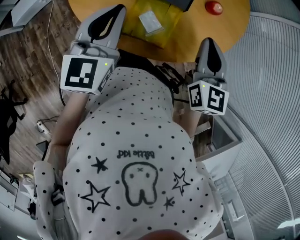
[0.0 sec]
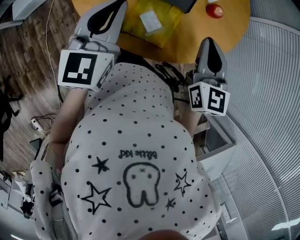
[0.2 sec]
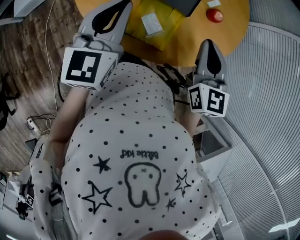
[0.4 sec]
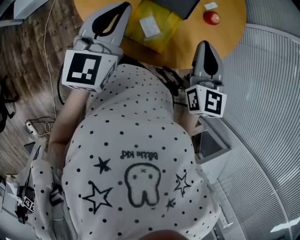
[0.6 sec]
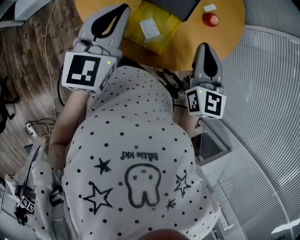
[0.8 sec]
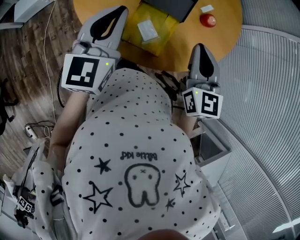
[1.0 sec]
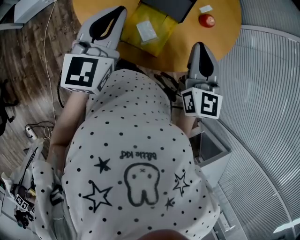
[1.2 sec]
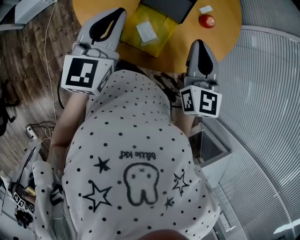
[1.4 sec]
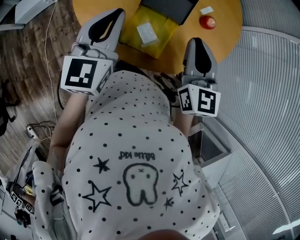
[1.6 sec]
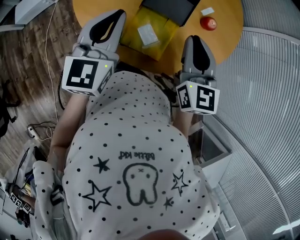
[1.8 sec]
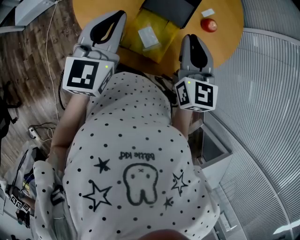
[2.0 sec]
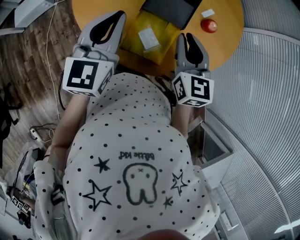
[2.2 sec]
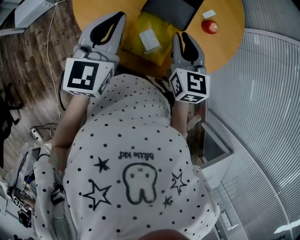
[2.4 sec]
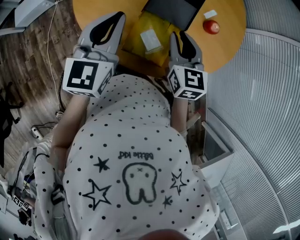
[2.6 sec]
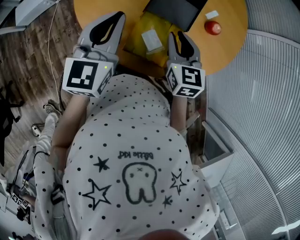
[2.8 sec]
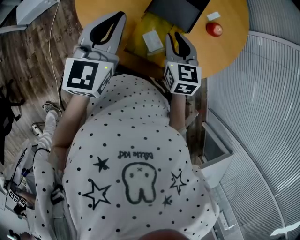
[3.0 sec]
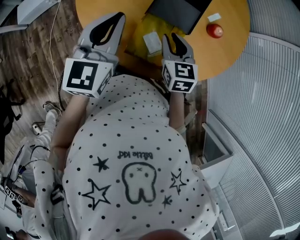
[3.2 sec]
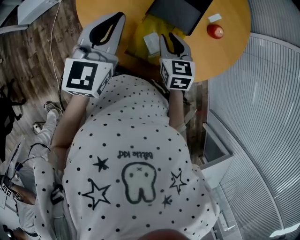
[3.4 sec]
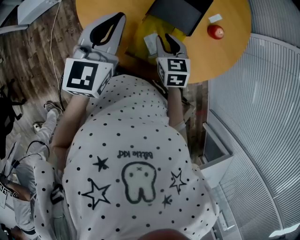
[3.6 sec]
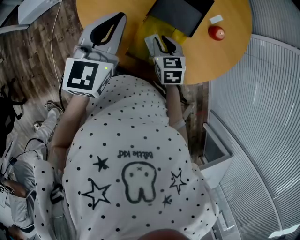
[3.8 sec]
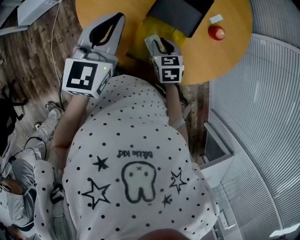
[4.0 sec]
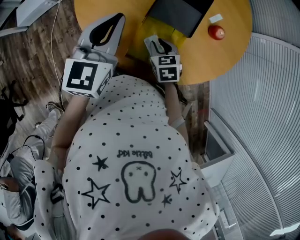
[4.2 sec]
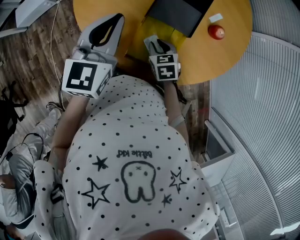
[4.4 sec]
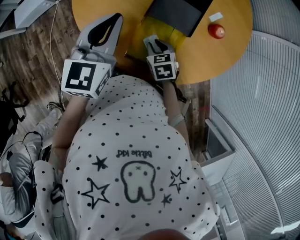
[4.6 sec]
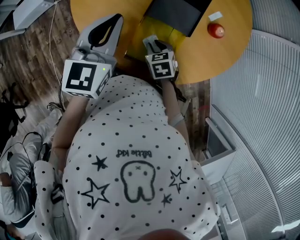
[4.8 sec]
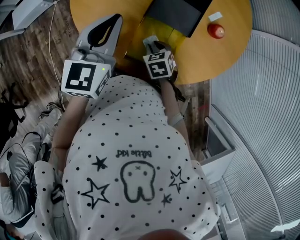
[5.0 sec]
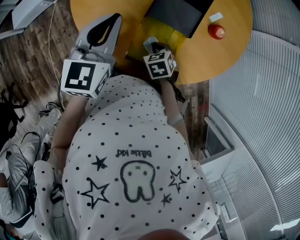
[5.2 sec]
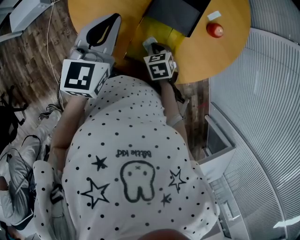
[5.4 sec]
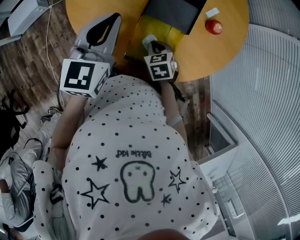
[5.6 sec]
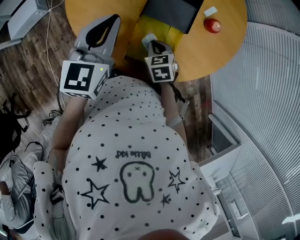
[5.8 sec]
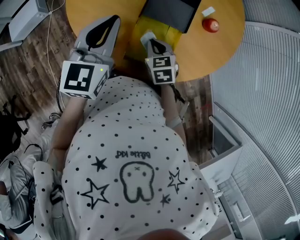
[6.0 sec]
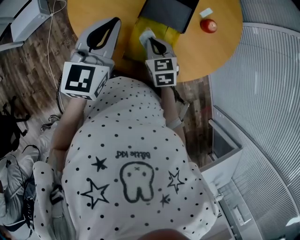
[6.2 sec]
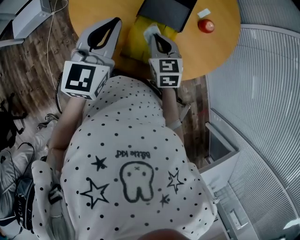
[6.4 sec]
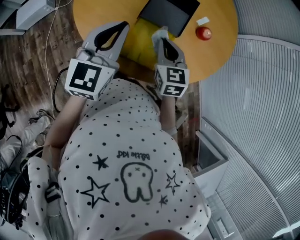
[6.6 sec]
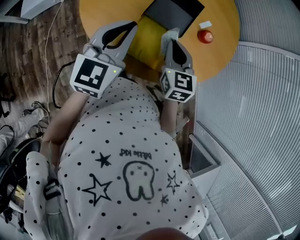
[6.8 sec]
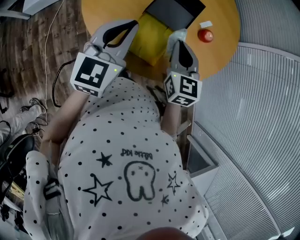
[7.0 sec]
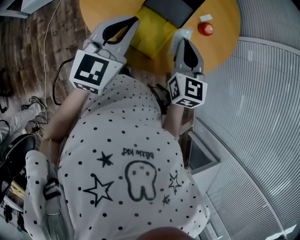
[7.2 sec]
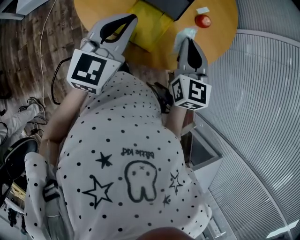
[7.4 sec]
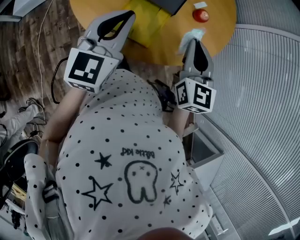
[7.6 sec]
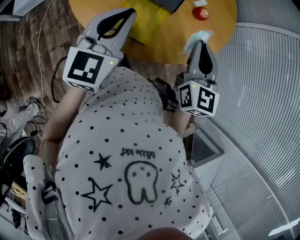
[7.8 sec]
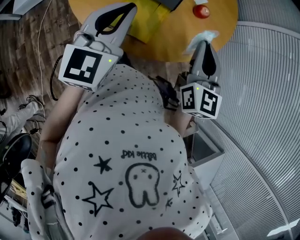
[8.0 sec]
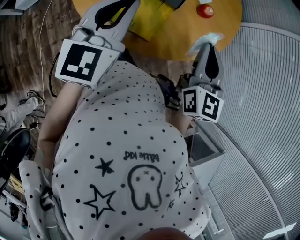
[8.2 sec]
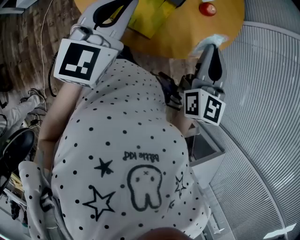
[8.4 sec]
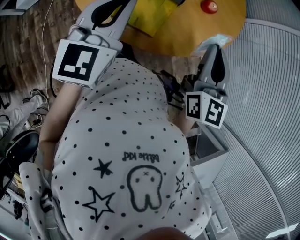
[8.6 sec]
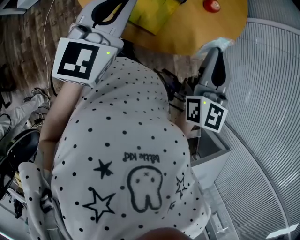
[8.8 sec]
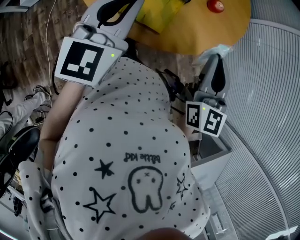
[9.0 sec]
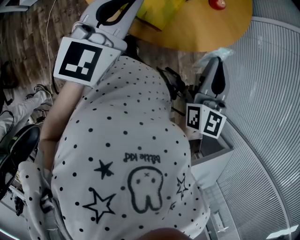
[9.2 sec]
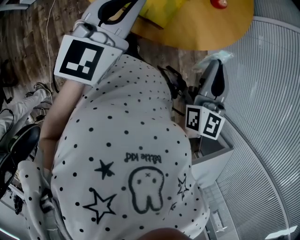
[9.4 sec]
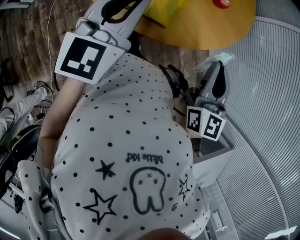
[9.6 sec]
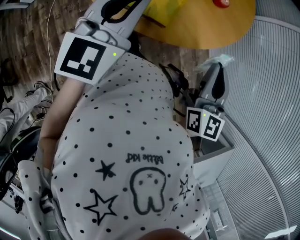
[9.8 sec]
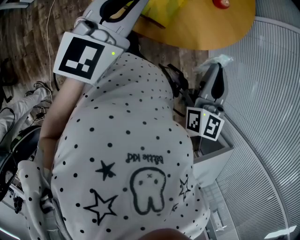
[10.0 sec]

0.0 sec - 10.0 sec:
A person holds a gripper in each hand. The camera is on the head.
0.0 sec - 1.4 sec: The right gripper shifts by about 5 cm.
1.4 sec - 2.8 sec: The right gripper heads downward, forward and to the left, covering approximately 15 cm, and opens its fingers. The left gripper moves roughly 5 cm.
2.8 sec - 4.2 sec: The right gripper is displaced downward by roughly 15 cm, and changes its angle by roughly 30 degrees.
4.2 sec - 5.8 sec: The right gripper closes.
5.8 sec - 7.2 sec: The left gripper shifts approximately 20 cm backward and to the right. The right gripper is displaced upward and to the right by roughly 25 cm, and tilts its fingers roughly 40 degrees upward.
7.2 sec - 8.6 sec: The right gripper moves to the right, upward and backward, some 10 cm.
8.6 sec - 10.0 sec: The right gripper shifts by some 5 cm.

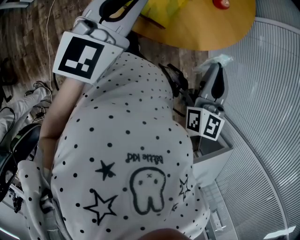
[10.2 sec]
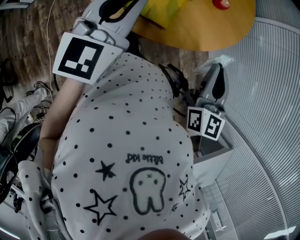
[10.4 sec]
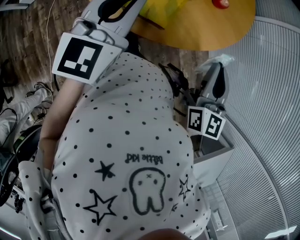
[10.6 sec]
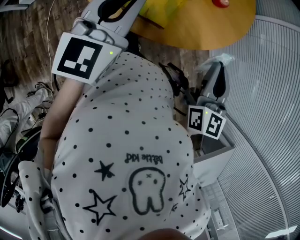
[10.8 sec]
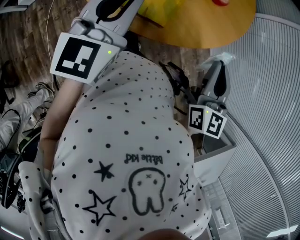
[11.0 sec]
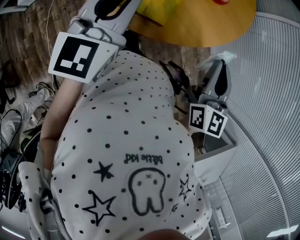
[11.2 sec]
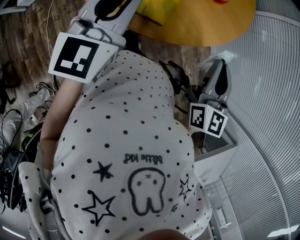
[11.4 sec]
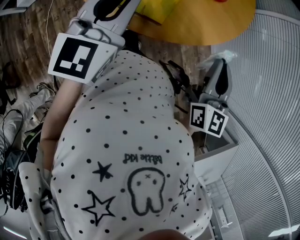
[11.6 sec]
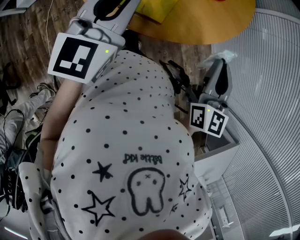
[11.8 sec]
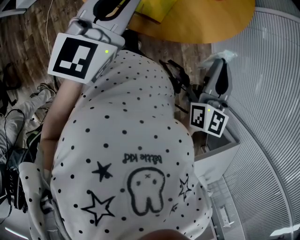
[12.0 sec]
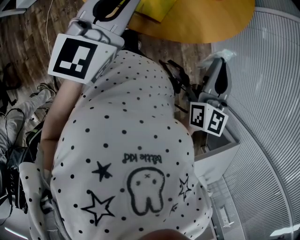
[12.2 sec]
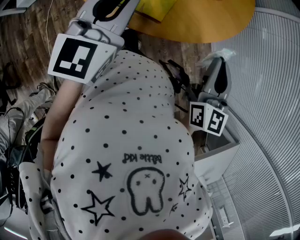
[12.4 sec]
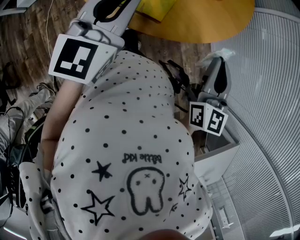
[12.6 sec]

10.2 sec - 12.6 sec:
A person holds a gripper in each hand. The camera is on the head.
10.2 sec - 11.4 sec: Both grippers stay put.
11.4 sec - 12.6 sec: The two grippers keep their place.

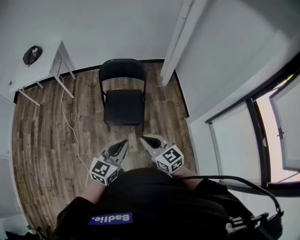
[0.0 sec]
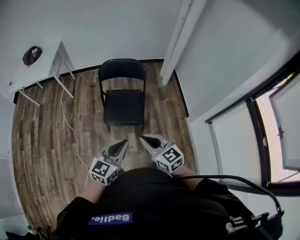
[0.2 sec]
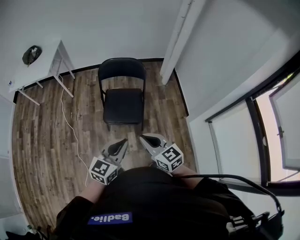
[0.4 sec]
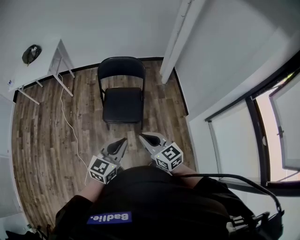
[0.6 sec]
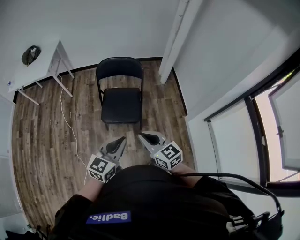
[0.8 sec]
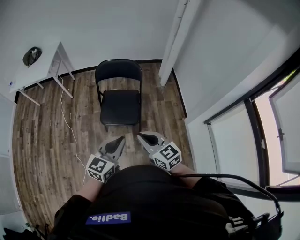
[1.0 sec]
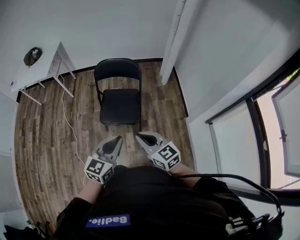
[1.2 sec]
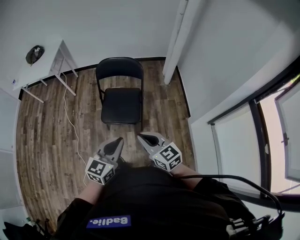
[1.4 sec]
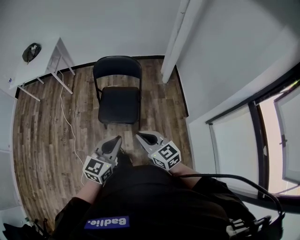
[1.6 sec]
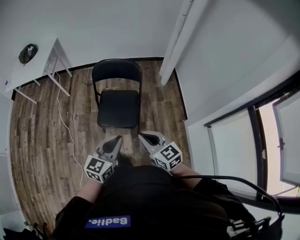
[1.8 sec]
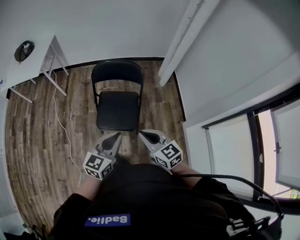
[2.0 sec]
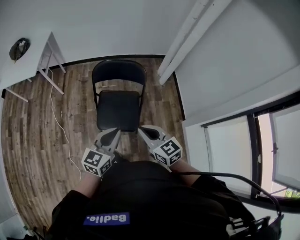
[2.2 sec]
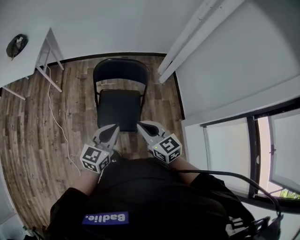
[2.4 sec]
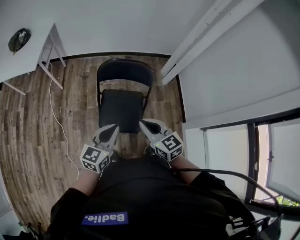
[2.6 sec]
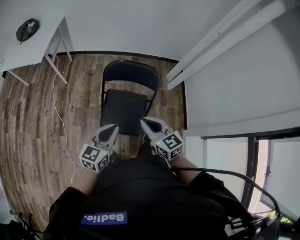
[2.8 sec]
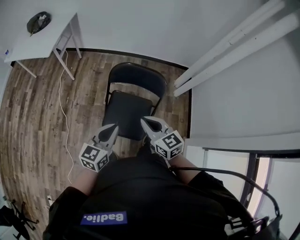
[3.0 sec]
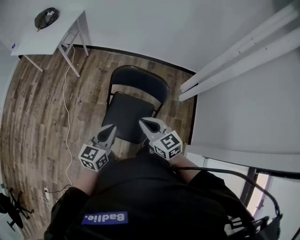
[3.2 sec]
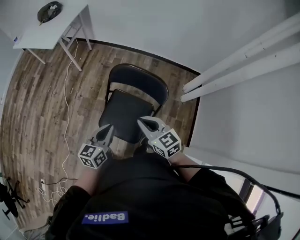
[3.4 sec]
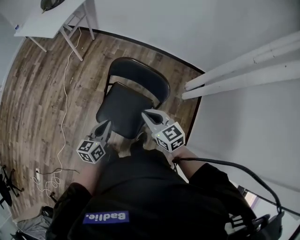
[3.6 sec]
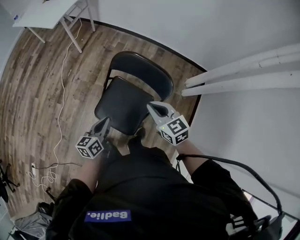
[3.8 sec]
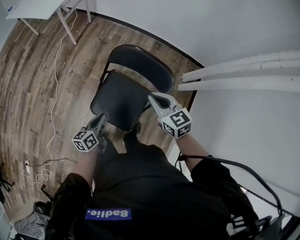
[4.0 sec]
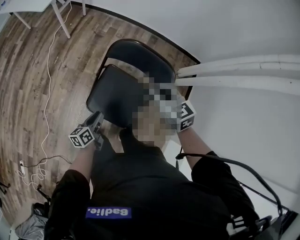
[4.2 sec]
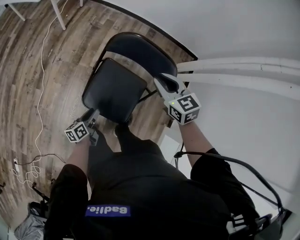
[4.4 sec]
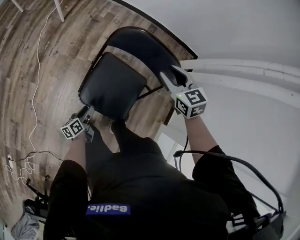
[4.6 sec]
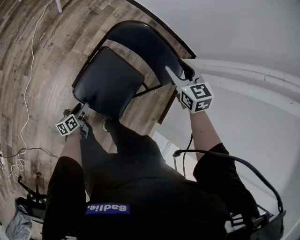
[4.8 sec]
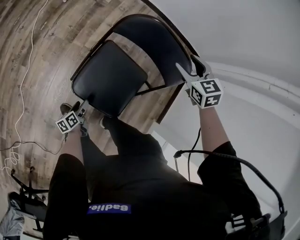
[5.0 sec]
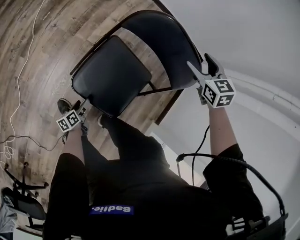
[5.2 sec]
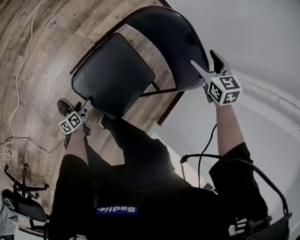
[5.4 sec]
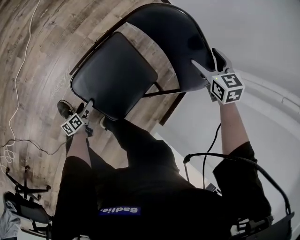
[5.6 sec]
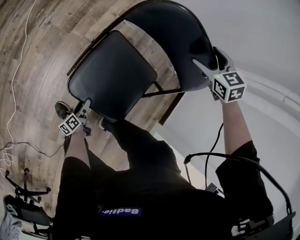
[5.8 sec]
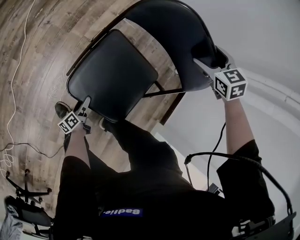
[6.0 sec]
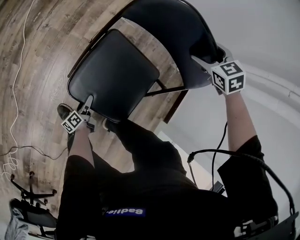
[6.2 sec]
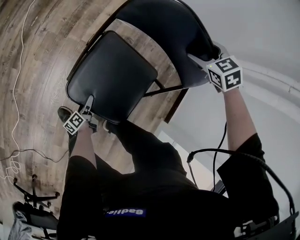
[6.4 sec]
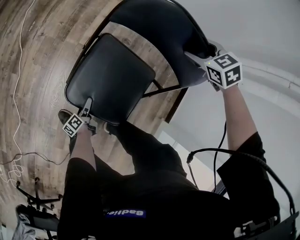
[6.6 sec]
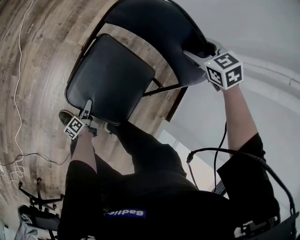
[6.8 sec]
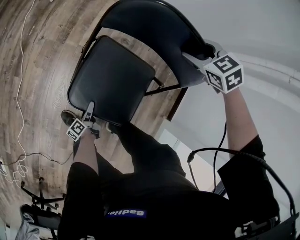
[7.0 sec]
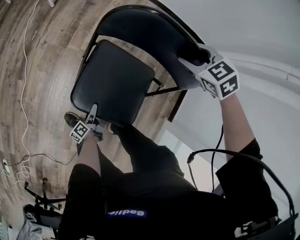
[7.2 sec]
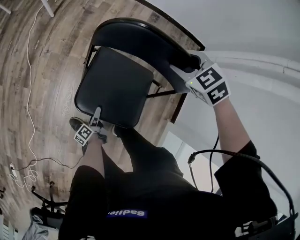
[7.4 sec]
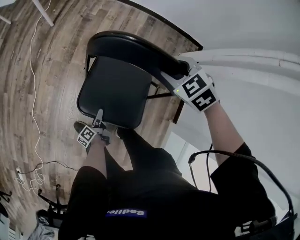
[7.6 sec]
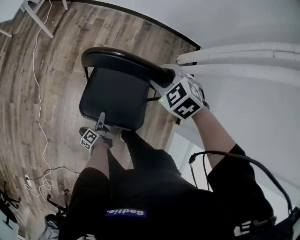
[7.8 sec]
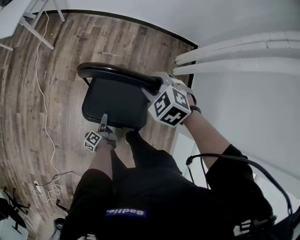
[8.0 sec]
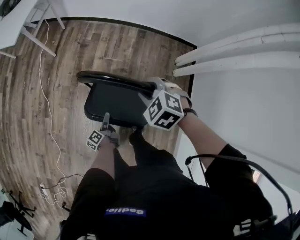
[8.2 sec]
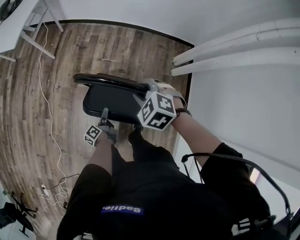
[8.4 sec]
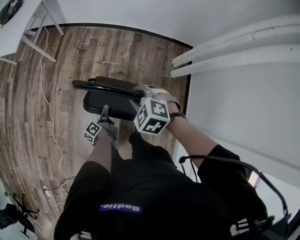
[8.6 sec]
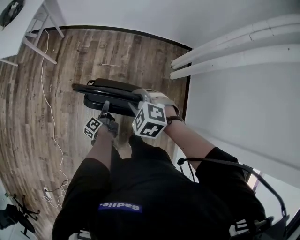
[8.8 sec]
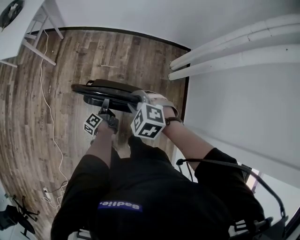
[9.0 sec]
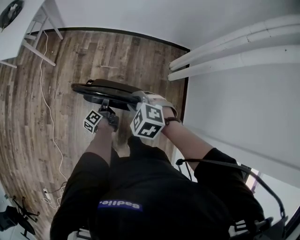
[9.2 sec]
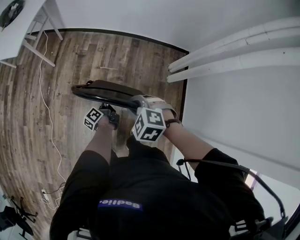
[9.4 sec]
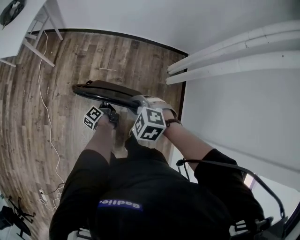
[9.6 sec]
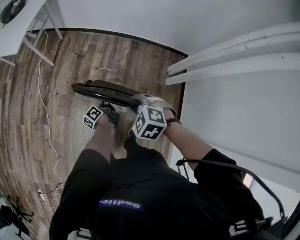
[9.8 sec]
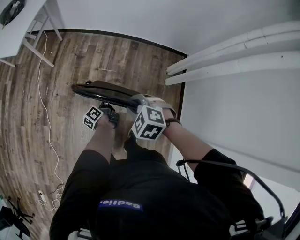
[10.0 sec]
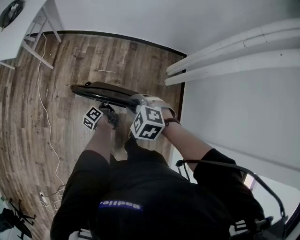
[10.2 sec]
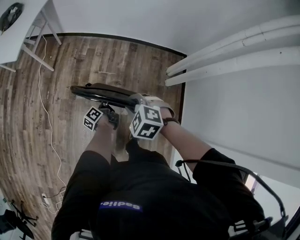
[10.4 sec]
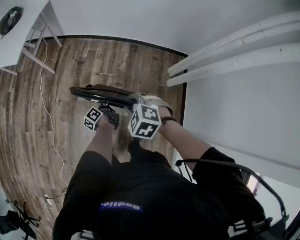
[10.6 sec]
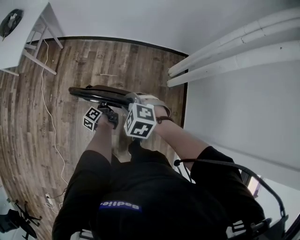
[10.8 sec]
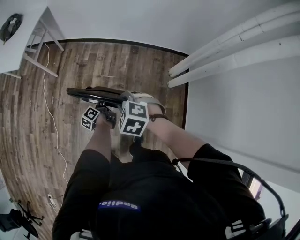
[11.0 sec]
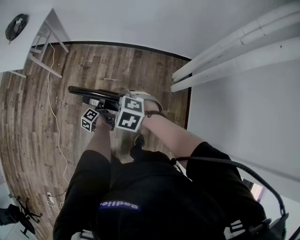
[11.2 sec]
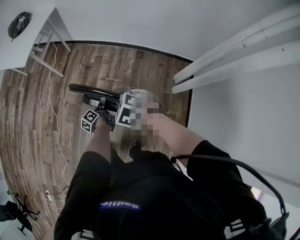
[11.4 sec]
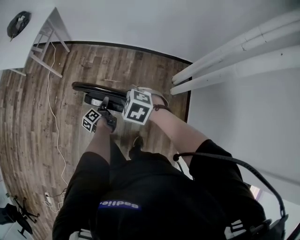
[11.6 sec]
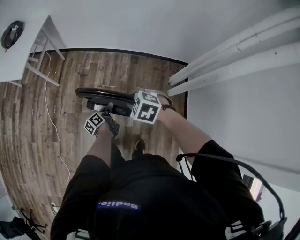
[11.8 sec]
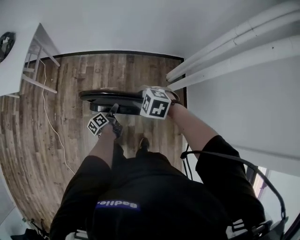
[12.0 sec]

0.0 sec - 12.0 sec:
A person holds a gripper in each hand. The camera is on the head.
0.0 sec - 1.6 sec: The two grippers go roughly 10 cm to the right.
1.6 sec - 3.0 sec: The right gripper is displaced forward by approximately 35 cm; the left gripper shifts approximately 35 cm forward and to the left.
3.0 sec - 4.4 sec: The left gripper moves downward, approximately 35 cm, twists some 50 degrees counterclockwise, seen from behind, and opens up. The right gripper travels forward and downward by roughly 20 cm, and turns by some 20 degrees.
4.4 sec - 6.0 sec: The right gripper is displaced downward, forward and to the right by about 25 cm, turns by roughly 30 degrees, and opens. The left gripper moves downward, some 30 cm, rotates some 30 degrees, and opens.
6.0 sec - 7.6 sec: The left gripper travels upward by some 15 cm. Meanwhile the right gripper is displaced upward, backward and to the left by about 15 cm, and closes its fingers.
7.6 sec - 9.0 sec: The right gripper heads upward and backward, covering roughly 10 cm. Meanwhile the left gripper goes about 30 cm upward, forward and to the right, and closes its fingers.
9.0 sec - 10.4 sec: The left gripper heads forward, covering some 5 cm.
10.4 sec - 12.0 sec: The left gripper ends up about 5 cm from where it was, and turns by approximately 20 degrees, while the right gripper moves forward and to the right, about 10 cm.
